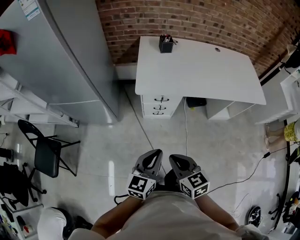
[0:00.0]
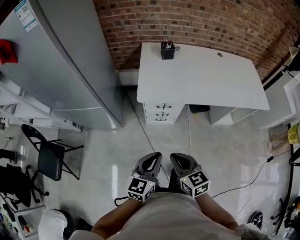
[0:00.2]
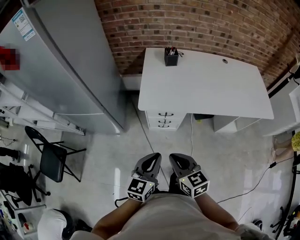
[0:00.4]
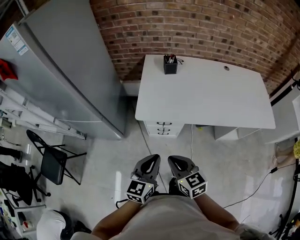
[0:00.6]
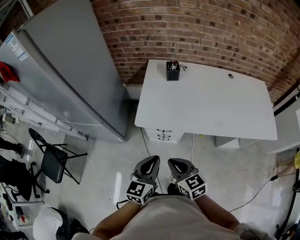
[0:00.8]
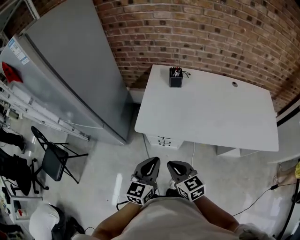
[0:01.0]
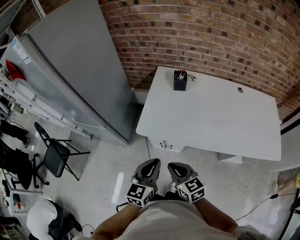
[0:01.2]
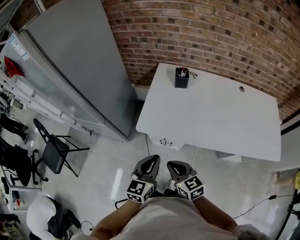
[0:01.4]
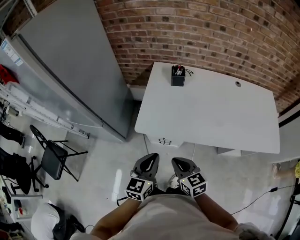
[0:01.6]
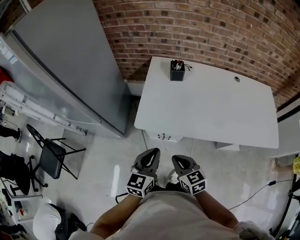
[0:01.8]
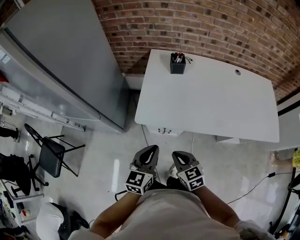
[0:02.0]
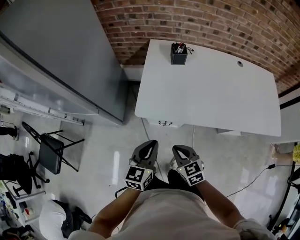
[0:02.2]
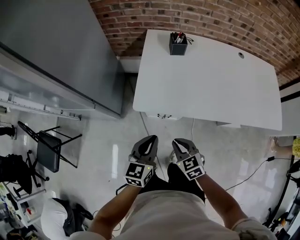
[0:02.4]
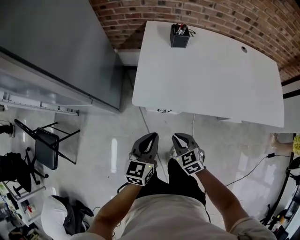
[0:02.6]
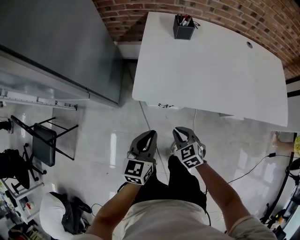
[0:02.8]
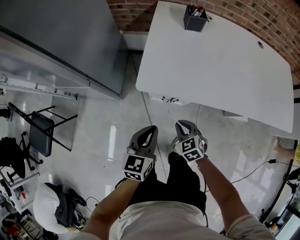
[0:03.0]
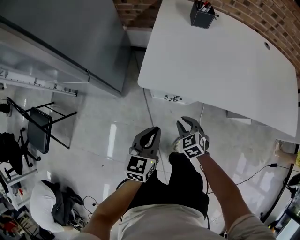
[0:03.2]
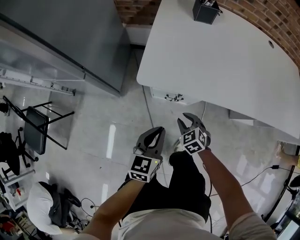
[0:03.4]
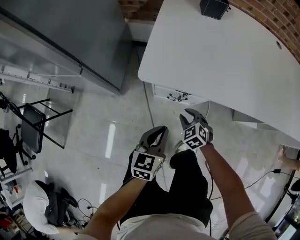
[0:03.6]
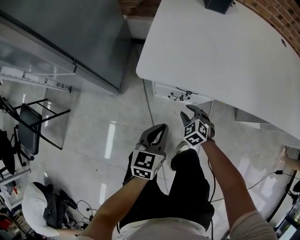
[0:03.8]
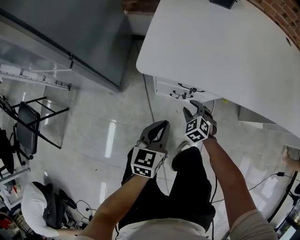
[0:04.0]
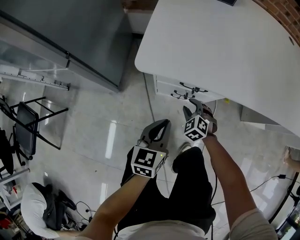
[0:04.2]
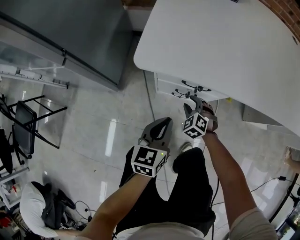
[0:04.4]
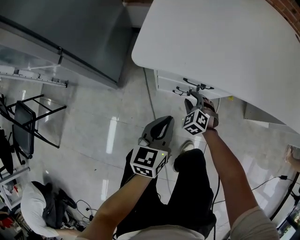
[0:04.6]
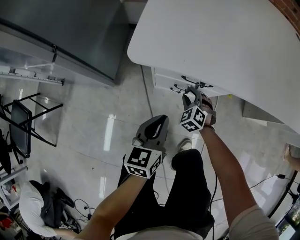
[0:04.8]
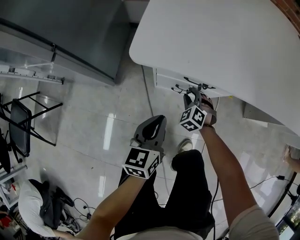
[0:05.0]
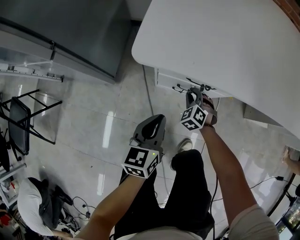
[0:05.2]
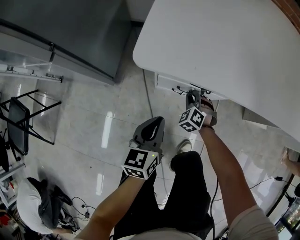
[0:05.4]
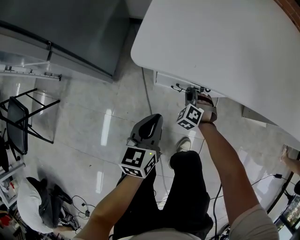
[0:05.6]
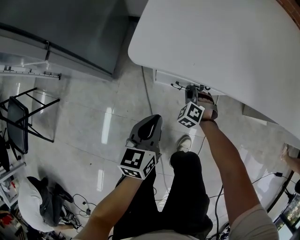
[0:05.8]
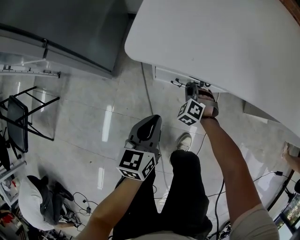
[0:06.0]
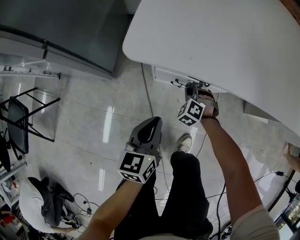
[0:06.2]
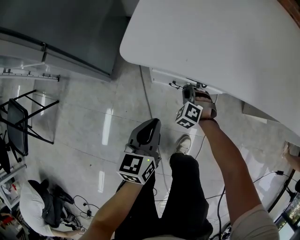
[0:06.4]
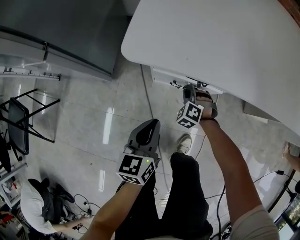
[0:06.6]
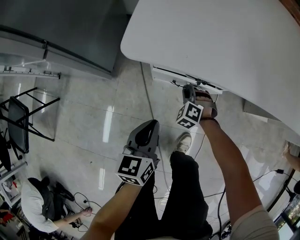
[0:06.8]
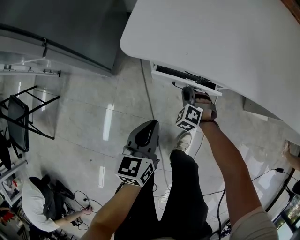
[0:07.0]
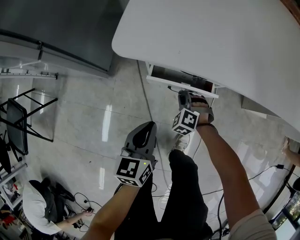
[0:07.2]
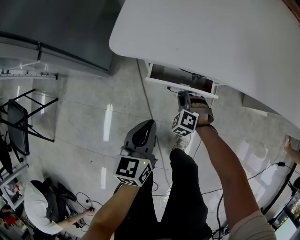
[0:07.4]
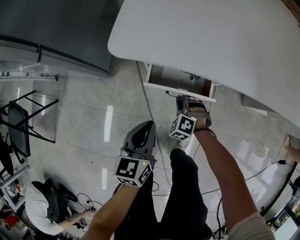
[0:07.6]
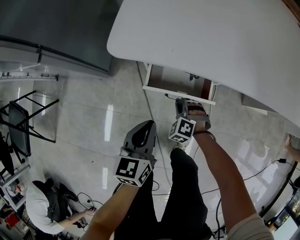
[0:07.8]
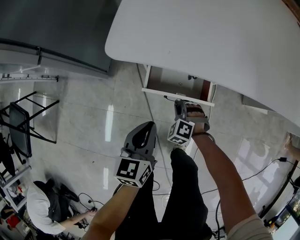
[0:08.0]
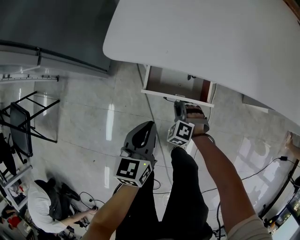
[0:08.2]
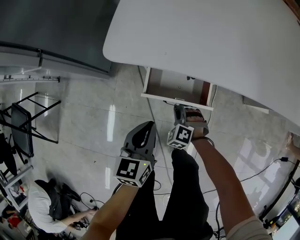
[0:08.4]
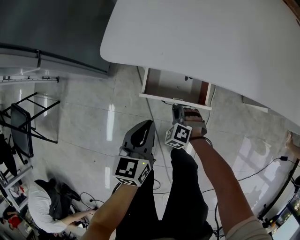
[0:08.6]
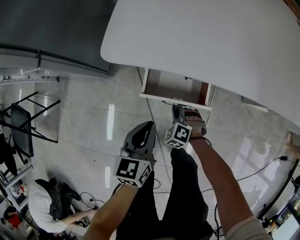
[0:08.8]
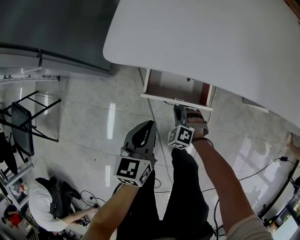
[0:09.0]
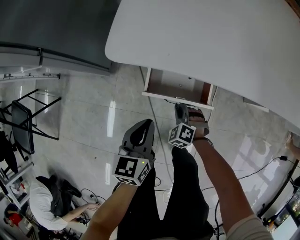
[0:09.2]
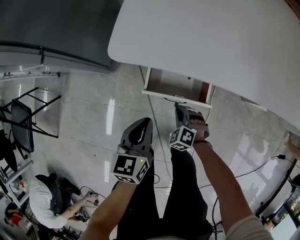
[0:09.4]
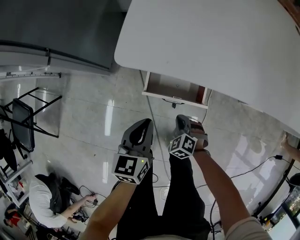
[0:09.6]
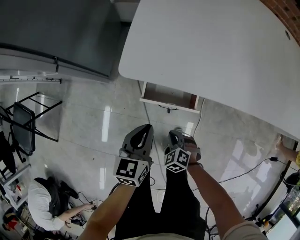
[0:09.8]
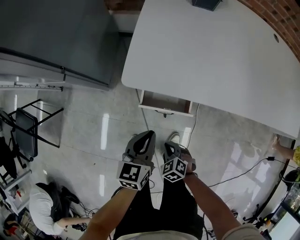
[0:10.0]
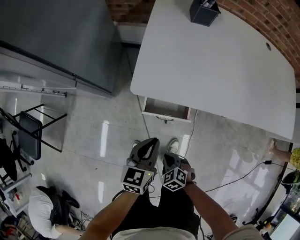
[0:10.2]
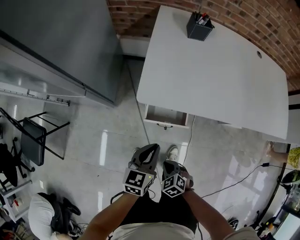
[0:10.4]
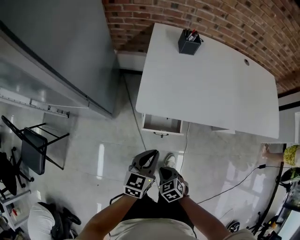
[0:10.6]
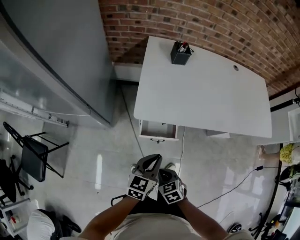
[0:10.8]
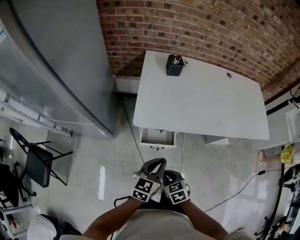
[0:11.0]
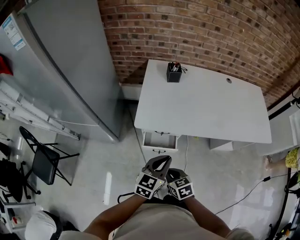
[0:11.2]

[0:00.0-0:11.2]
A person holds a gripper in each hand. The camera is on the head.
0:00.0 to 0:01.6: The two grippers go about 25 cm forward and to the right.
0:01.6 to 0:03.2: Both grippers move downward, some 25 cm. The right gripper rotates roughly 30 degrees.
0:03.2 to 0:04.8: The left gripper travels downward by approximately 20 cm, while the right gripper moves downward and forward, some 30 cm, turns by some 20 degrees, and opens its fingers.
0:04.8 to 0:06.4: The right gripper closes up.
0:06.4 to 0:08.0: The right gripper travels backward by approximately 10 cm.
0:08.0 to 0:09.6: The left gripper moves roughly 5 cm, while the right gripper is displaced backward and upward by approximately 10 cm.
0:09.6 to 0:11.2: The two grippers go roughly 40 cm upward. The left gripper rotates roughly 30 degrees, while the right gripper twists approximately 50 degrees clockwise, seen from behind.

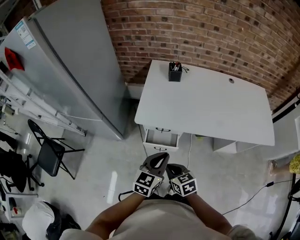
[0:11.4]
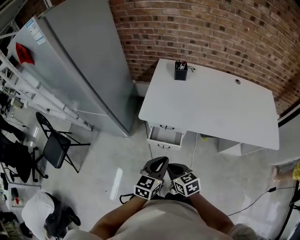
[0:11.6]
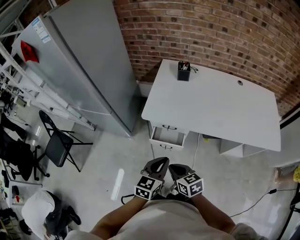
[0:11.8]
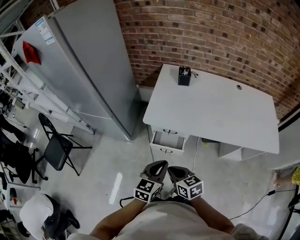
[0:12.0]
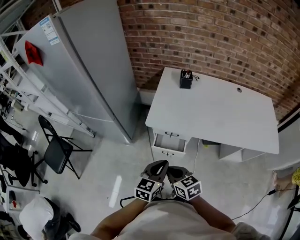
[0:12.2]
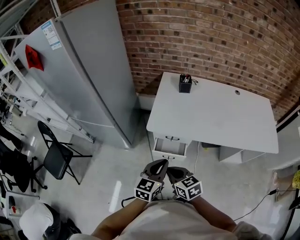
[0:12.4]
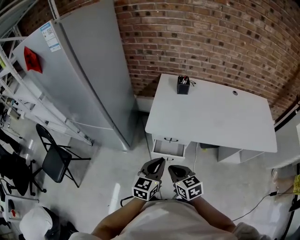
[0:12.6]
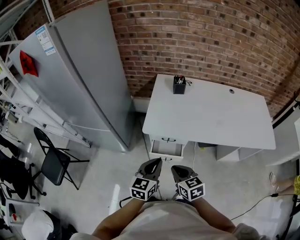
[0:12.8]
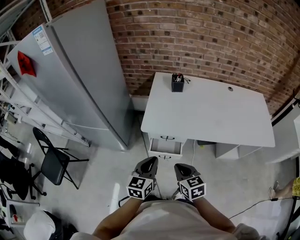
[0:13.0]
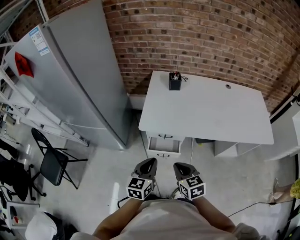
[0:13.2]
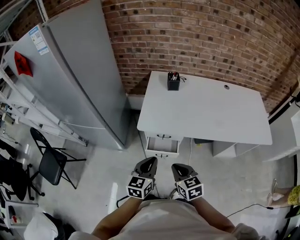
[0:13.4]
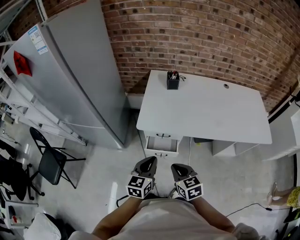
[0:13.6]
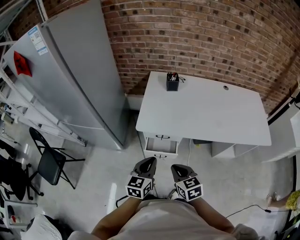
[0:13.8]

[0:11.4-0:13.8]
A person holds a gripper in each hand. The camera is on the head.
0:11.4 to 0:12.6: The right gripper is displaced upward by some 5 cm. Meanwhile the left gripper goes about 10 cm to the left.
0:12.6 to 0:13.8: The right gripper shifts some 5 cm to the right.

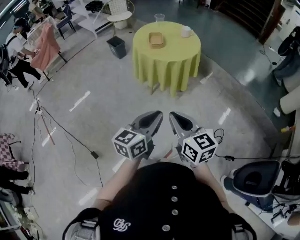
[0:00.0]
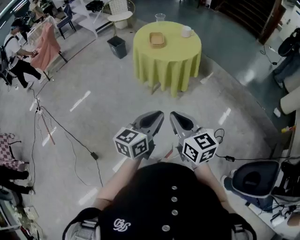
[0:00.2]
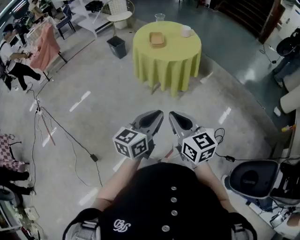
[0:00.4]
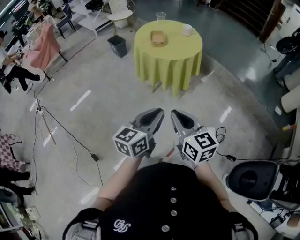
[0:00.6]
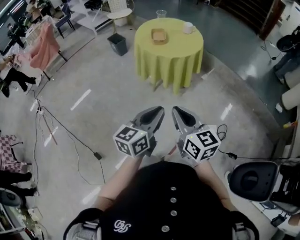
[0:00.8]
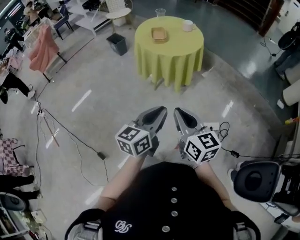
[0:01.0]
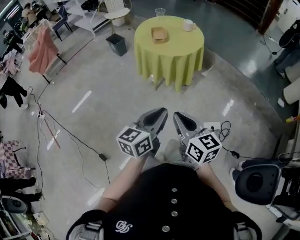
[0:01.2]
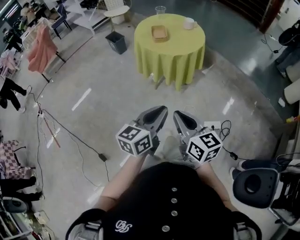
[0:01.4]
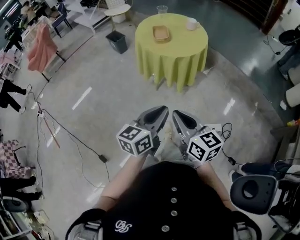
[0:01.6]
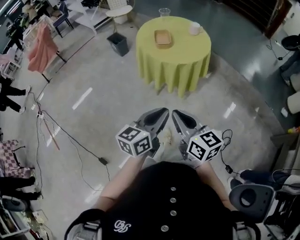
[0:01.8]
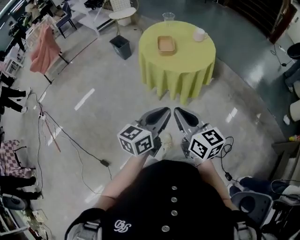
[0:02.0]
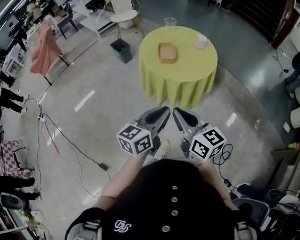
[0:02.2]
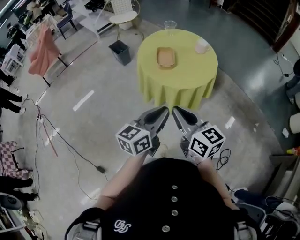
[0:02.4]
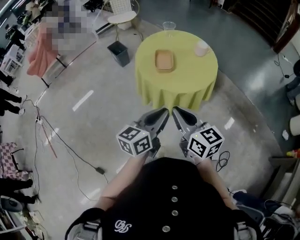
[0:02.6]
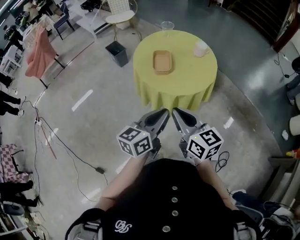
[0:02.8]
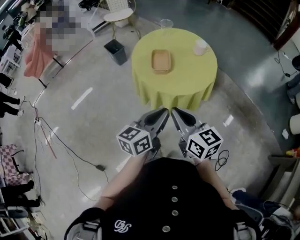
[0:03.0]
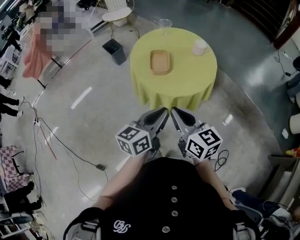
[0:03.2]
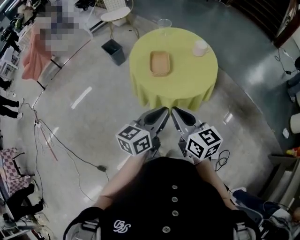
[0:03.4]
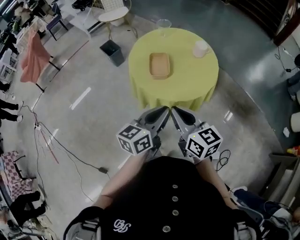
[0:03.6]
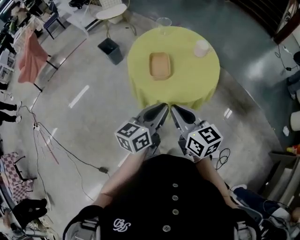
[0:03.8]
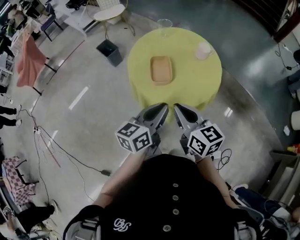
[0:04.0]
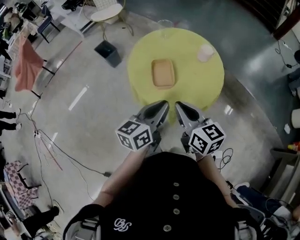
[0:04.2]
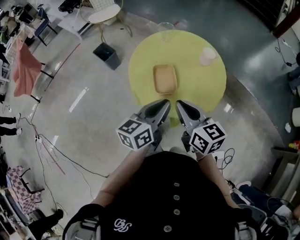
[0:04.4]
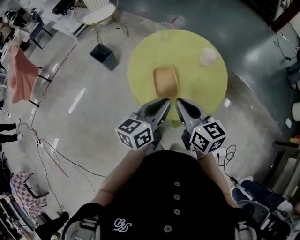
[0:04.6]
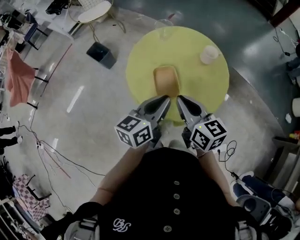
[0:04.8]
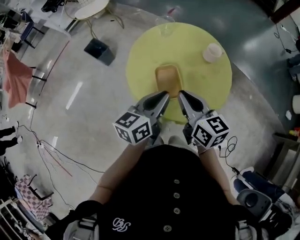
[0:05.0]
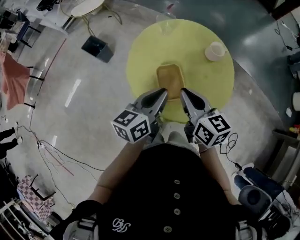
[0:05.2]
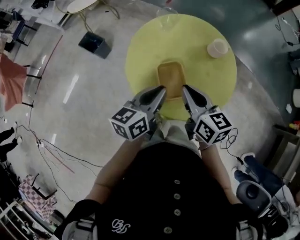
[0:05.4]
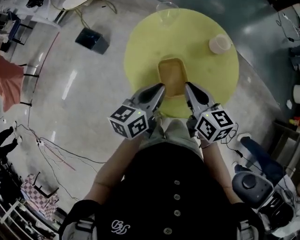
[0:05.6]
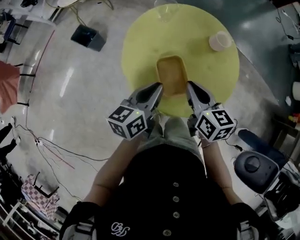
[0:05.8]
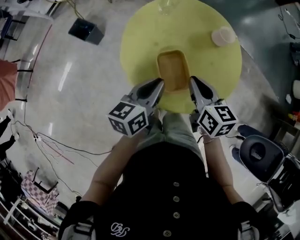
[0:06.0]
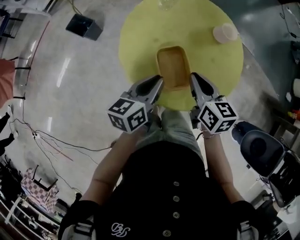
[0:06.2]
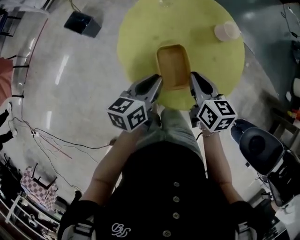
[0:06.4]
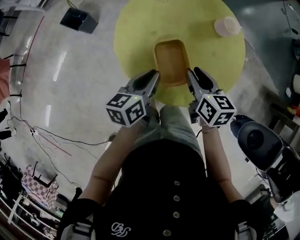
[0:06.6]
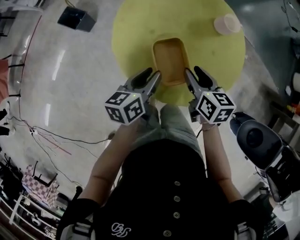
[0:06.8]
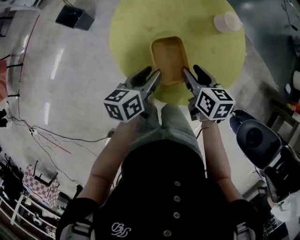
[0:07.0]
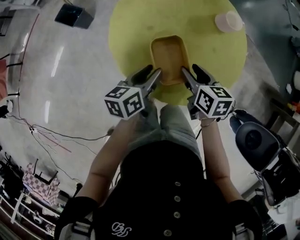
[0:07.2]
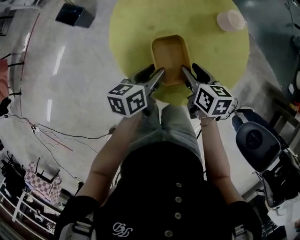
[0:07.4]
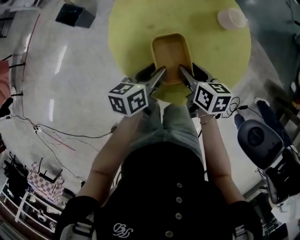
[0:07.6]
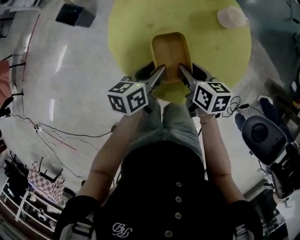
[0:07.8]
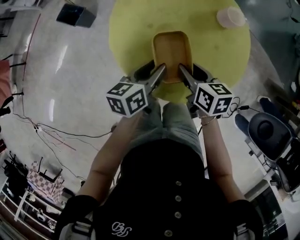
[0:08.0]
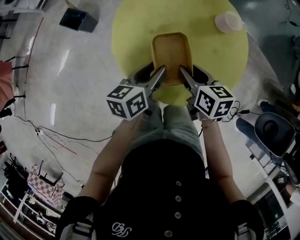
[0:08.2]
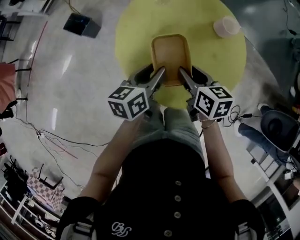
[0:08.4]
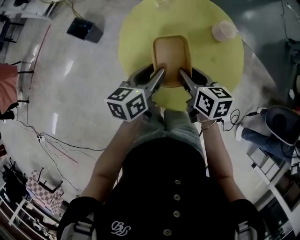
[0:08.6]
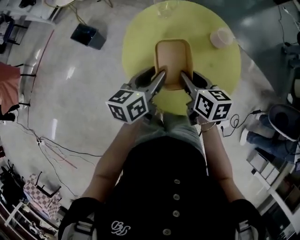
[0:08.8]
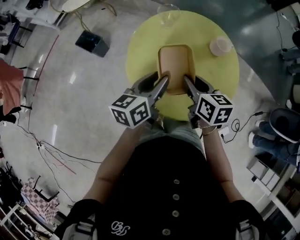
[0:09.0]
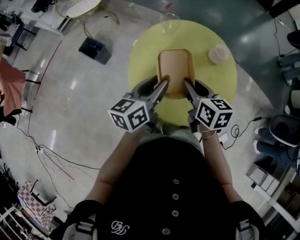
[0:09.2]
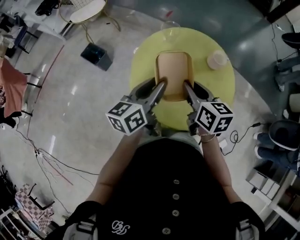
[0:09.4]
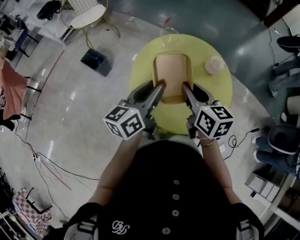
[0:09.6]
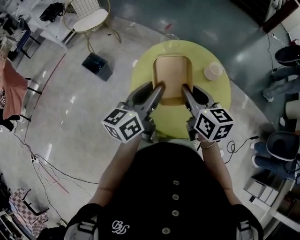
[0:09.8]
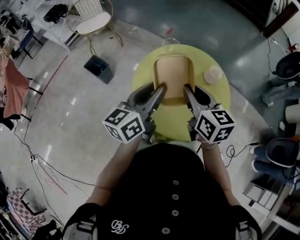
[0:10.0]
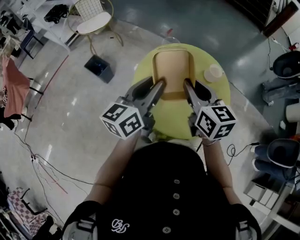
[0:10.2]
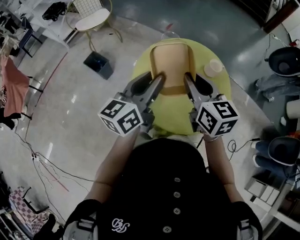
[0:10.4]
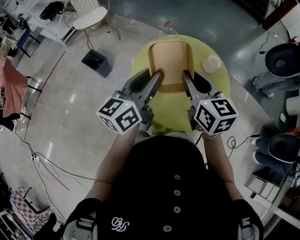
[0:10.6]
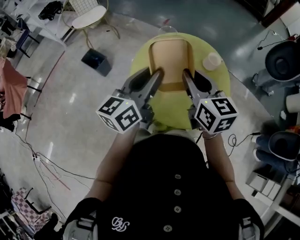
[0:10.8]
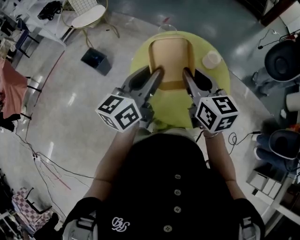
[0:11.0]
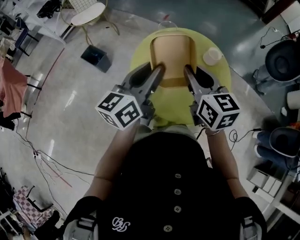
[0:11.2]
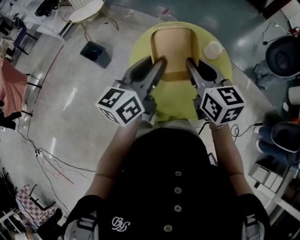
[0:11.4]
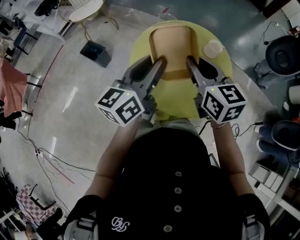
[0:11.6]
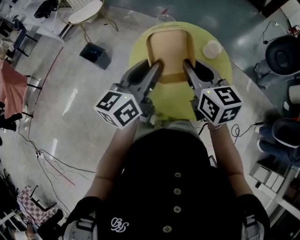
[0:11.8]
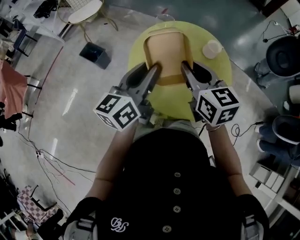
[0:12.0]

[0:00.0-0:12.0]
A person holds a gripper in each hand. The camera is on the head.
0:00.0 to 0:01.6: The two grippers go some 5 cm forward.
0:01.6 to 0:03.0: The grippers both shift forward by about 25 cm.
0:03.0 to 0:04.4: The grippers both shift forward by approximately 20 cm.
0:04.4 to 0:06.0: The left gripper moves forward, downward and to the left, roughly 15 cm. The right gripper shifts approximately 15 cm forward and downward, and rotates about 20 degrees.
0:06.0 to 0:07.6: The grippers both shift downward by approximately 10 cm. The right gripper opens up; the left gripper opens its fingers.
0:07.6 to 0:09.0: The grippers both shift upward by approximately 10 cm. The right gripper closes up.
0:09.0 to 0:10.4: Both grippers move upward, approximately 15 cm. The right gripper turns by roughly 30 degrees, while the left gripper turns by some 20 degrees.
0:10.4 to 0:12.0: The grippers make only small movements.
